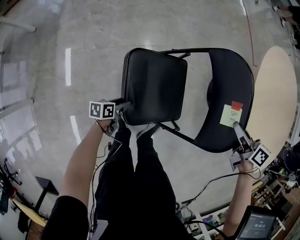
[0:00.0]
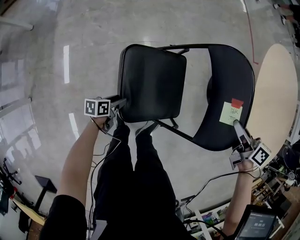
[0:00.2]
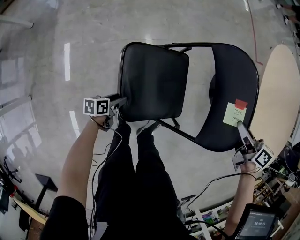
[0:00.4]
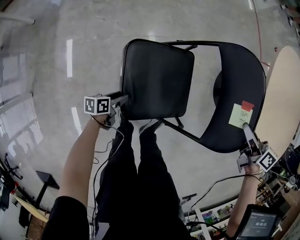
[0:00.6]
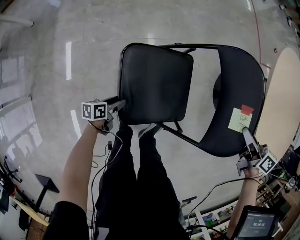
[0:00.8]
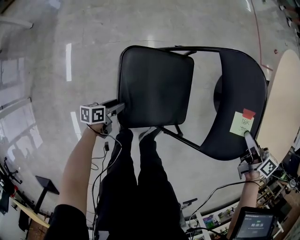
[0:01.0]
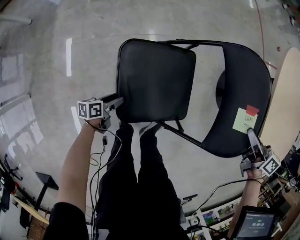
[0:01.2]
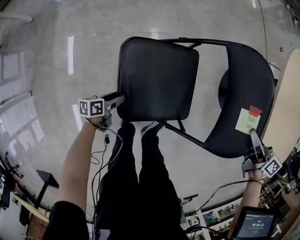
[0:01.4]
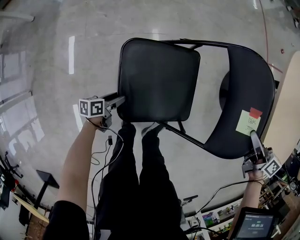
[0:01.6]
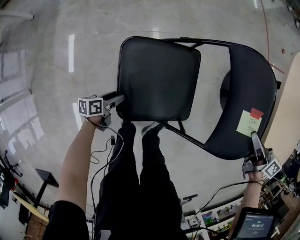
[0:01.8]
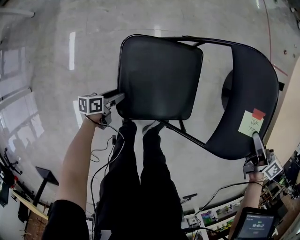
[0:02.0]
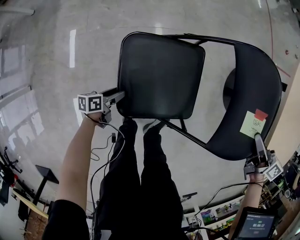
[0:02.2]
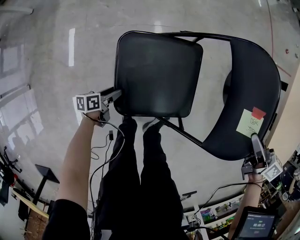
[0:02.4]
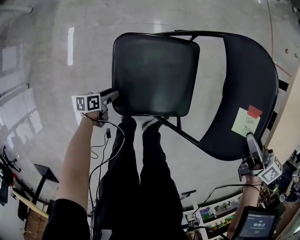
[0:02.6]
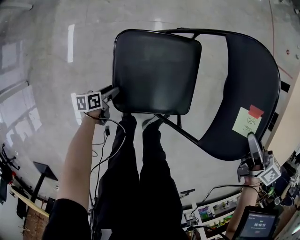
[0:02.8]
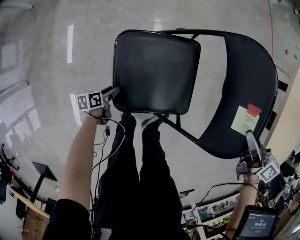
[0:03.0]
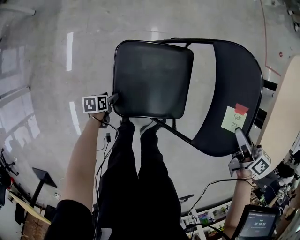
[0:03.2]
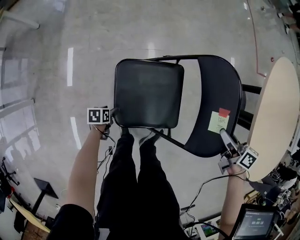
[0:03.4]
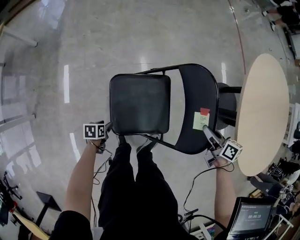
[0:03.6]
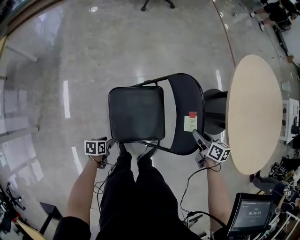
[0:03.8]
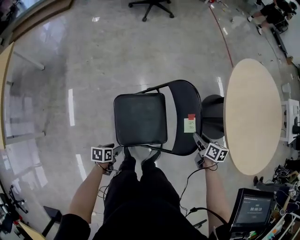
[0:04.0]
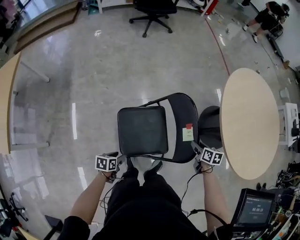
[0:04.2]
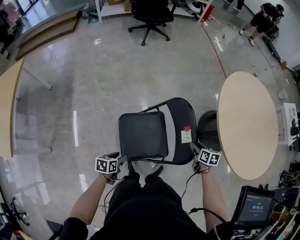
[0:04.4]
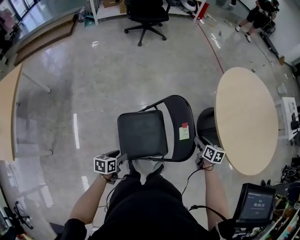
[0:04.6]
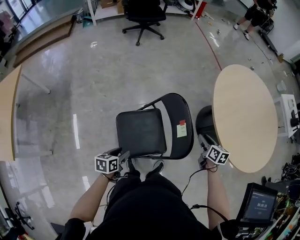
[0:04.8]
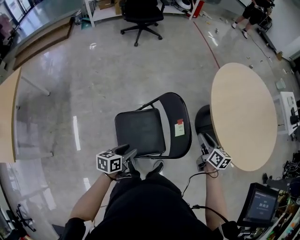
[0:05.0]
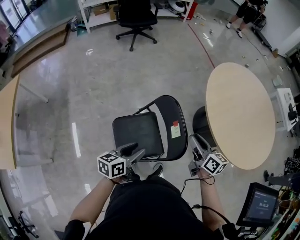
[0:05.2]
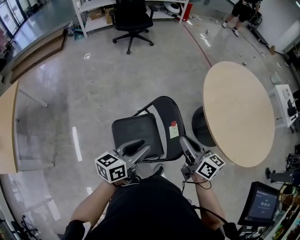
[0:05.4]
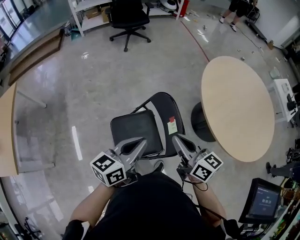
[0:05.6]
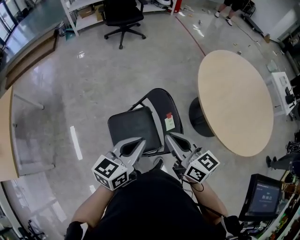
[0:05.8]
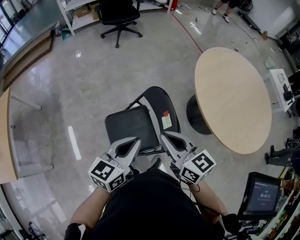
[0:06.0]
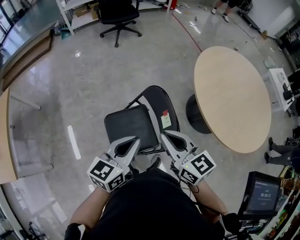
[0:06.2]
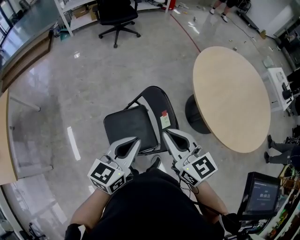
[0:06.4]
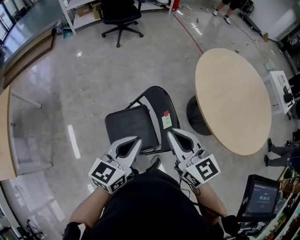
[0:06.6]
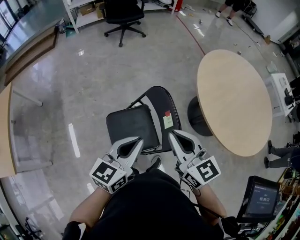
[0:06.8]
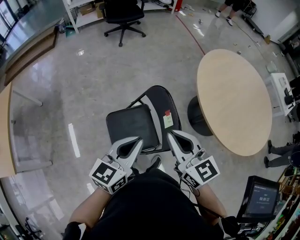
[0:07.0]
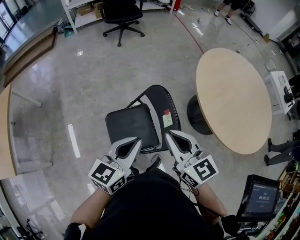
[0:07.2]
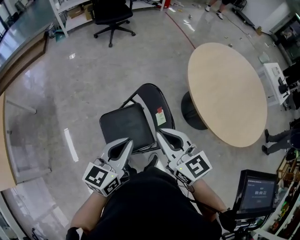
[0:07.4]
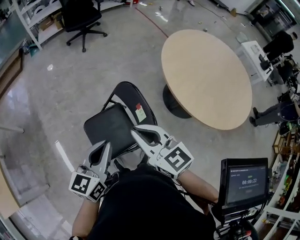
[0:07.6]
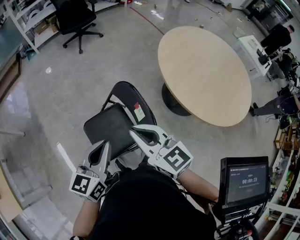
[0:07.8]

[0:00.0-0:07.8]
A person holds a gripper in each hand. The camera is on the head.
0:00.0 to 0:01.6: The left gripper travels downward by approximately 5 cm.
0:01.6 to 0:03.2: The left gripper goes some 10 cm downward and to the left, and changes its angle by about 20 degrees. Meanwhile the right gripper is displaced to the left and downward by some 10 cm.
0:03.2 to 0:04.6: The right gripper changes place by roughly 5 cm, and changes its angle by about 30 degrees. Meanwhile the left gripper heads upward, covering some 35 cm, and swivels roughly 30 degrees.
0:04.6 to 0:06.2: The right gripper goes roughly 35 cm upward and to the left, swivels approximately 40 degrees, and closes. Meanwhile the left gripper heads upward and to the right, covering approximately 35 cm, tips its fingers upward by about 30 degrees, and closes.
0:06.2 to 0:07.8: The grippers move only a little.

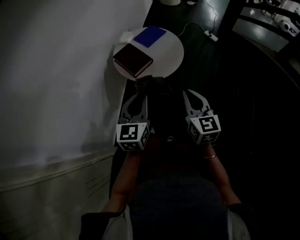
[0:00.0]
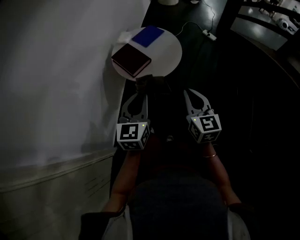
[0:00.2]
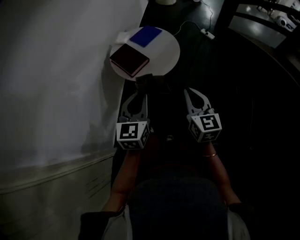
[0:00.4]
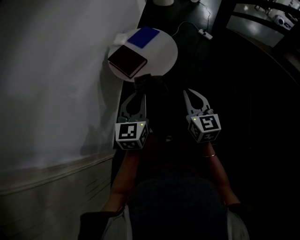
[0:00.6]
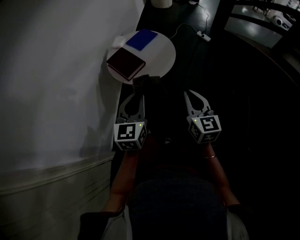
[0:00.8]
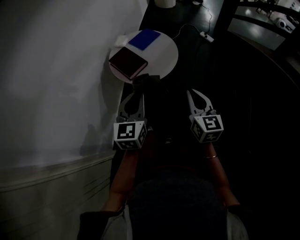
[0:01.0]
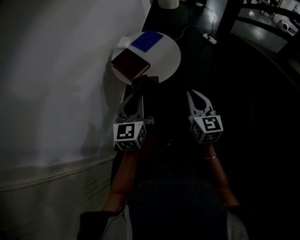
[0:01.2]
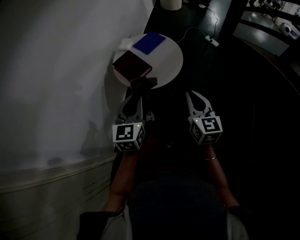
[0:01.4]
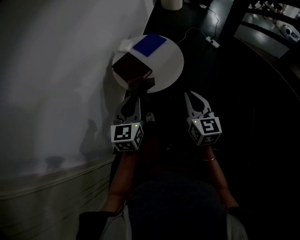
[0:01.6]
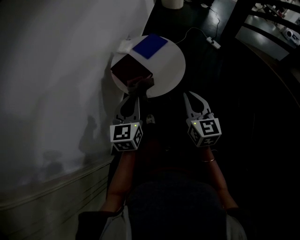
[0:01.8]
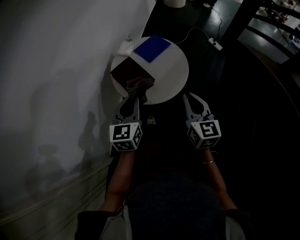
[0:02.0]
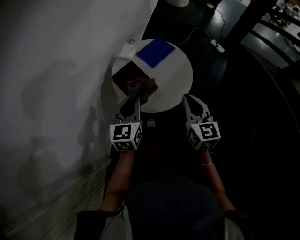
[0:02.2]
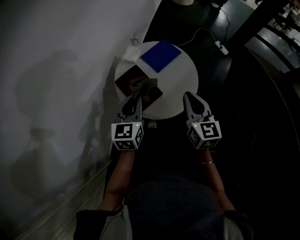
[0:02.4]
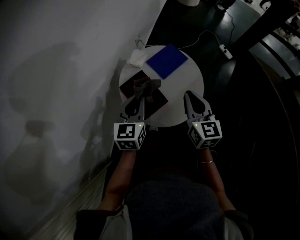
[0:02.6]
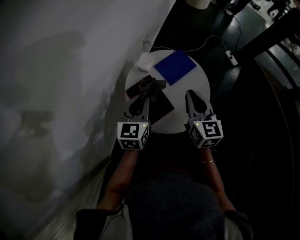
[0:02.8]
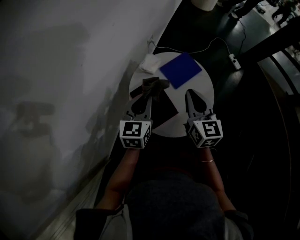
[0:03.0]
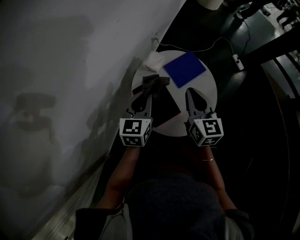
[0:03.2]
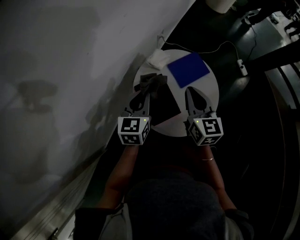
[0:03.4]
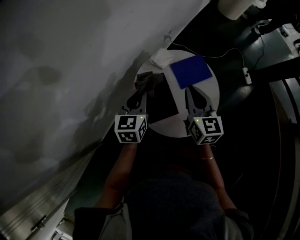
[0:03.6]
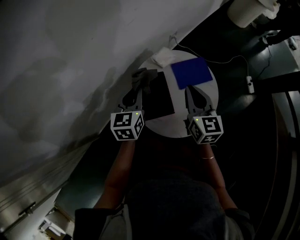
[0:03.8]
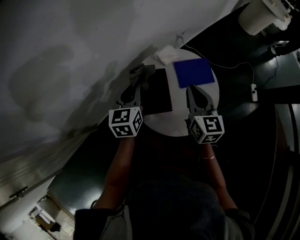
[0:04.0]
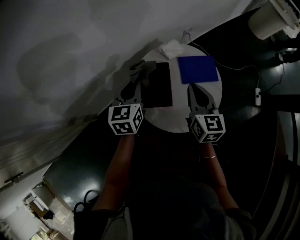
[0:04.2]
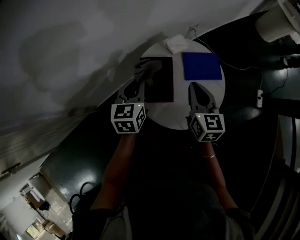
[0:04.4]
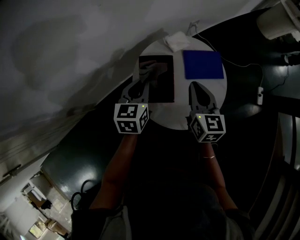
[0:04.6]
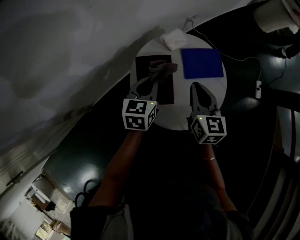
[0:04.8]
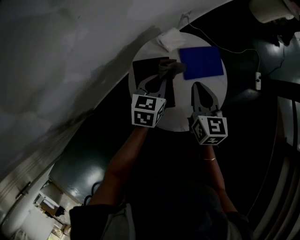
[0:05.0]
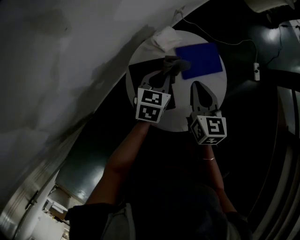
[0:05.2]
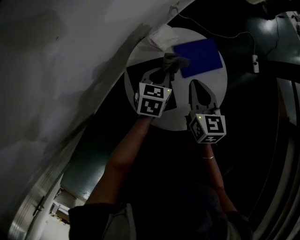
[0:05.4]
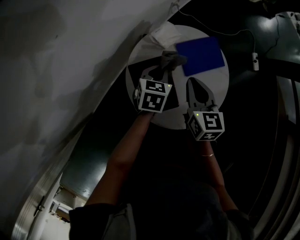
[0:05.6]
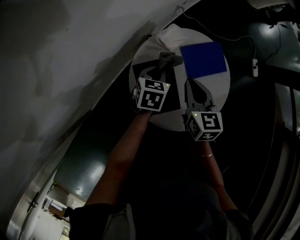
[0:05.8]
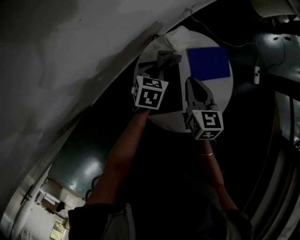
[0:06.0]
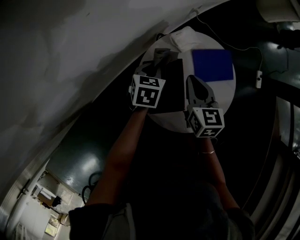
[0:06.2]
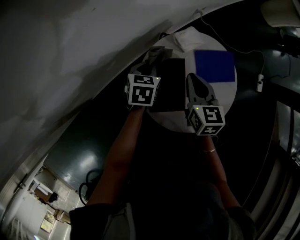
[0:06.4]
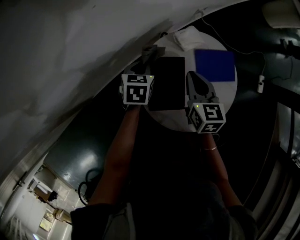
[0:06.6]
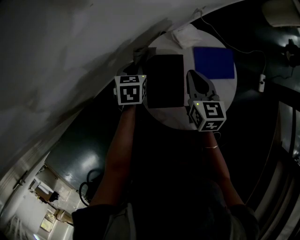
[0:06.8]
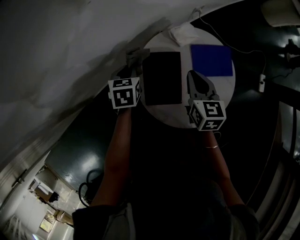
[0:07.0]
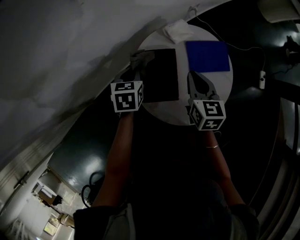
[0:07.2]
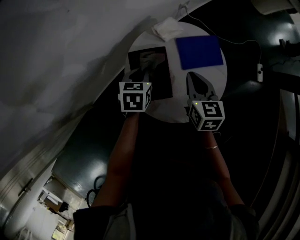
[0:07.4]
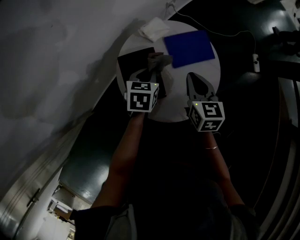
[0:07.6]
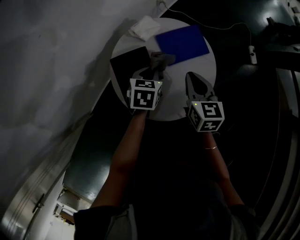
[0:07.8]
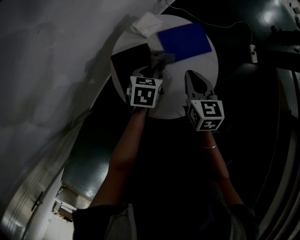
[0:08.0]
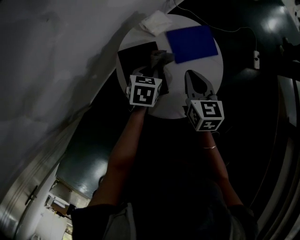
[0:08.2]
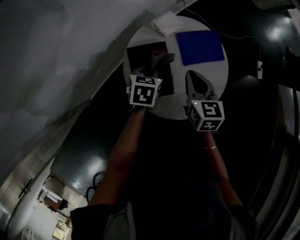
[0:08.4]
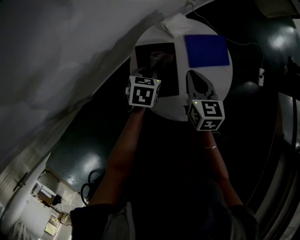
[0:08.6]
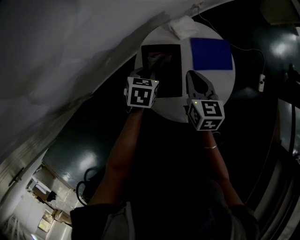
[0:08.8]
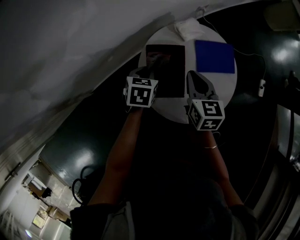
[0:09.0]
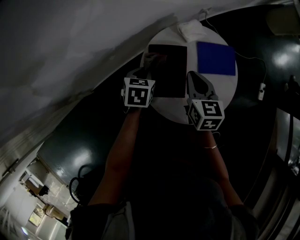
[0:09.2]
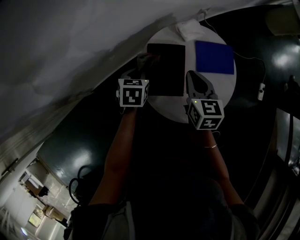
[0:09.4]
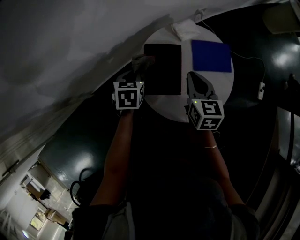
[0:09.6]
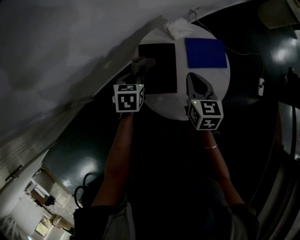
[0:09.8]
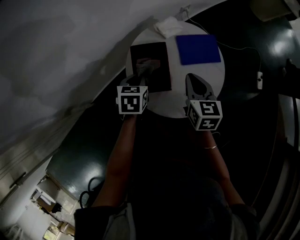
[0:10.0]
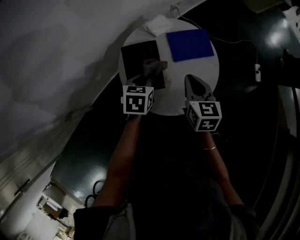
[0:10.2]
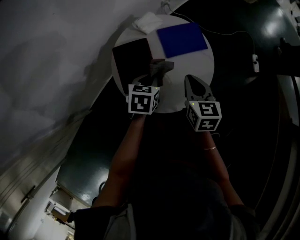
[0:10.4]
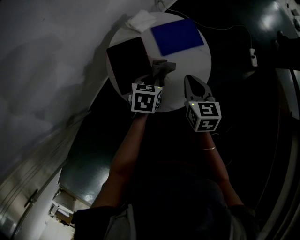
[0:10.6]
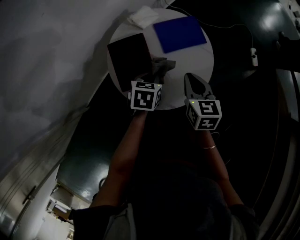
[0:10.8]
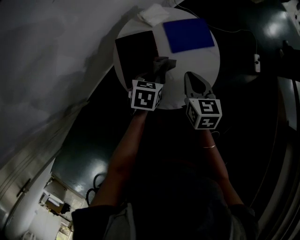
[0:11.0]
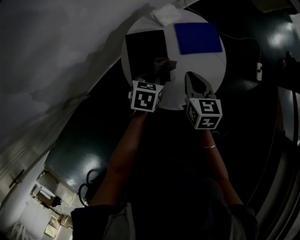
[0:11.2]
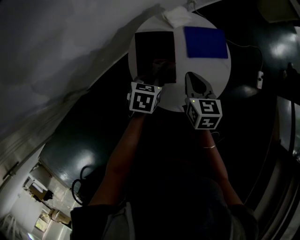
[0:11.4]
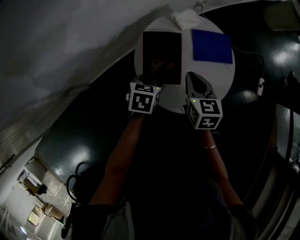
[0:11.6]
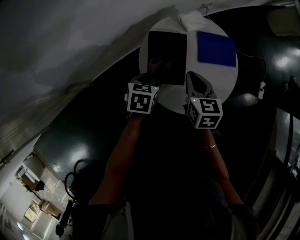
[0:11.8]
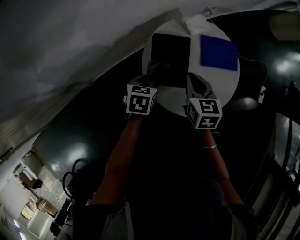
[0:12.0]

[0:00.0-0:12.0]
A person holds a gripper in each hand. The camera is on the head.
0:00.0 to 0:01.6: The grippers both shift forward by roughly 5 cm.
0:01.6 to 0:03.0: The grippers both shift forward by roughly 30 cm.
0:03.0 to 0:04.4: The left gripper changes place by about 5 cm, and changes its angle by roughly 40 degrees. The right gripper rotates some 30 degrees.
0:04.4 to 0:06.0: The right gripper ends up about 10 cm from where it was; the left gripper moves downward, about 15 cm, and changes its angle by about 30 degrees.
0:06.0 to 0:07.6: The right gripper heads to the right and backward, covering about 10 cm. The left gripper travels backward by roughly 5 cm, and moves approximately 10 cm to the left and comes back.
0:07.6 to 0:09.0: The two grippers go approximately 10 cm to the left.
0:09.0 to 0:10.4: Both grippers travel together to the right and backward, about 15 cm.
0:10.4 to 0:12.0: The grippers both shift to the left by approximately 15 cm.

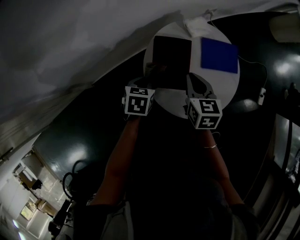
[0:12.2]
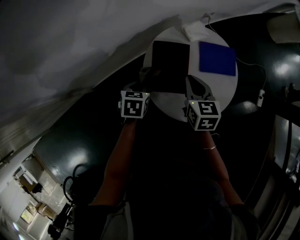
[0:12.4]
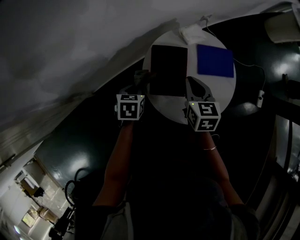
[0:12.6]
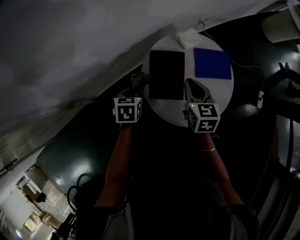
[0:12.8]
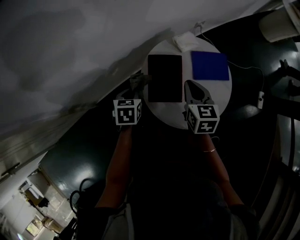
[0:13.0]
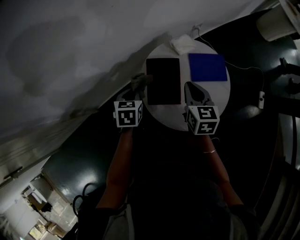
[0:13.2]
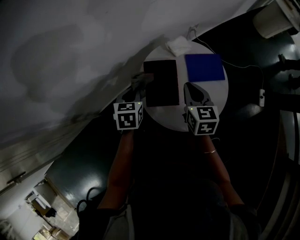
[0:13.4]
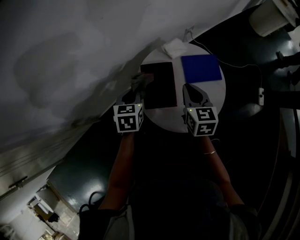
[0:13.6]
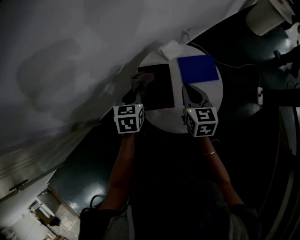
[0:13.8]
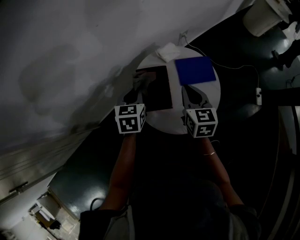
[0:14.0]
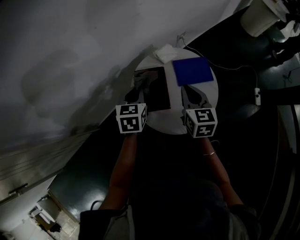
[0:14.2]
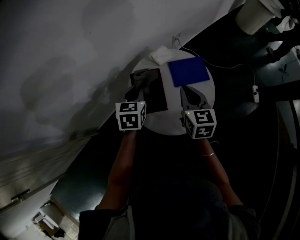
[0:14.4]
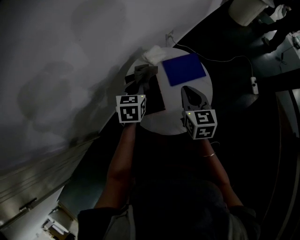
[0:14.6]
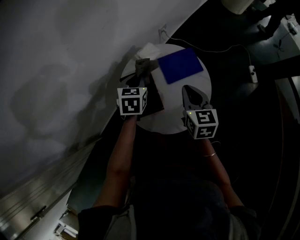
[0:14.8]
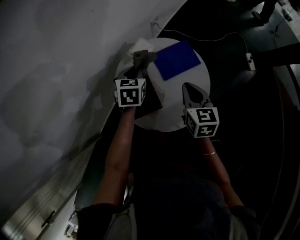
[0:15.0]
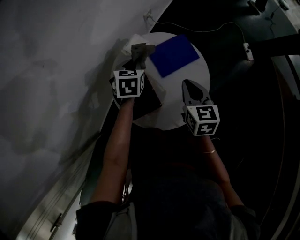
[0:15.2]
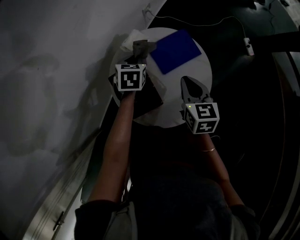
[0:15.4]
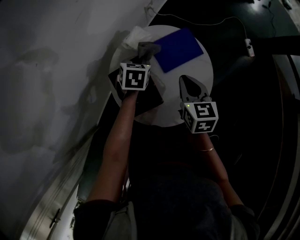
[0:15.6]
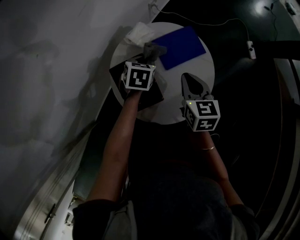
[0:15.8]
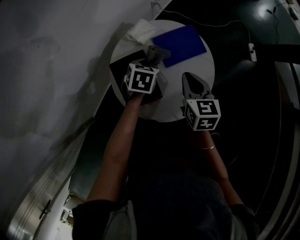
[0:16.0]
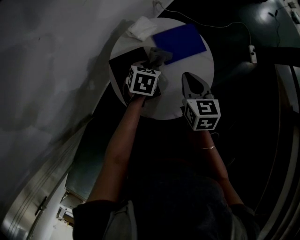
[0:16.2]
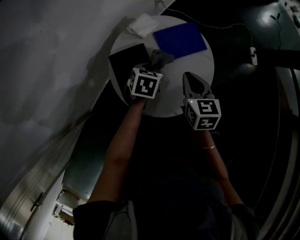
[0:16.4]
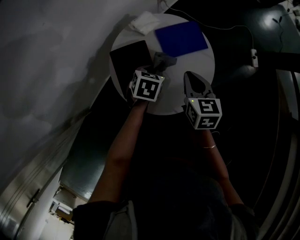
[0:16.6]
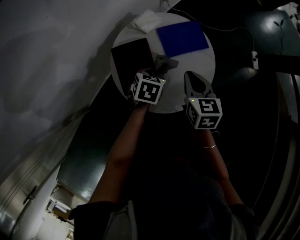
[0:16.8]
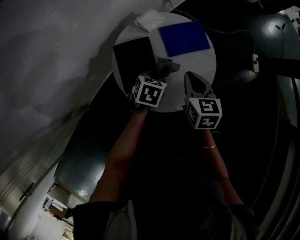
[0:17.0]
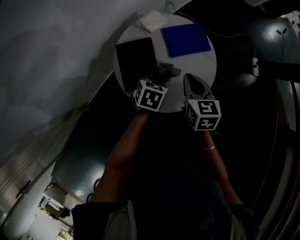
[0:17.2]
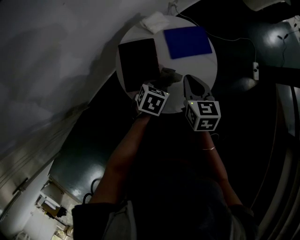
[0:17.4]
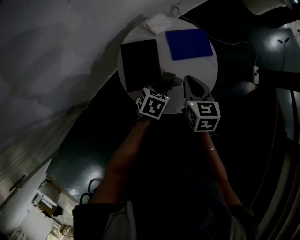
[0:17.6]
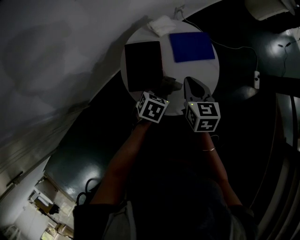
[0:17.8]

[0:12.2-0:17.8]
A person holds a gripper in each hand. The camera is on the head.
0:12.2 to 0:13.6: The left gripper goes roughly 10 cm upward and forward. Meanwhile the right gripper goes approximately 5 cm upward.
0:13.6 to 0:15.0: The right gripper moves to the right, about 10 cm, while the left gripper goes about 20 cm to the right and forward, and rotates some 20 degrees.
0:15.0 to 0:16.4: The left gripper goes roughly 10 cm downward, backward and to the right.
0:16.4 to 0:17.8: The left gripper moves backward, some 15 cm.
